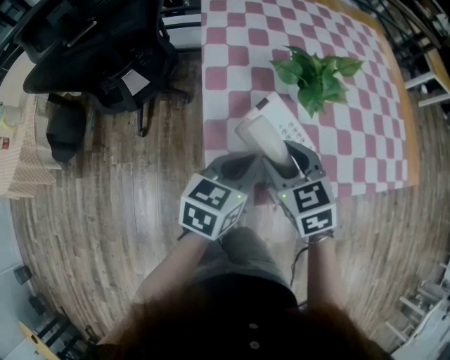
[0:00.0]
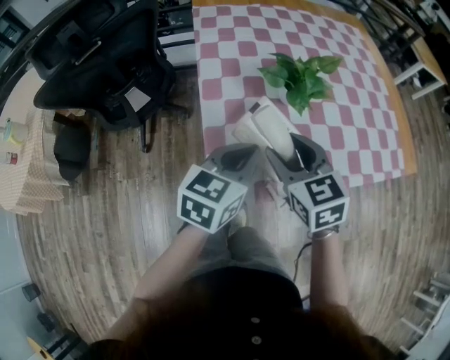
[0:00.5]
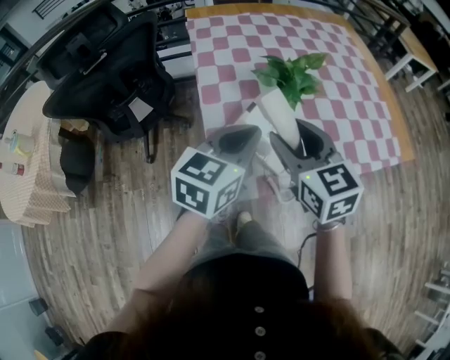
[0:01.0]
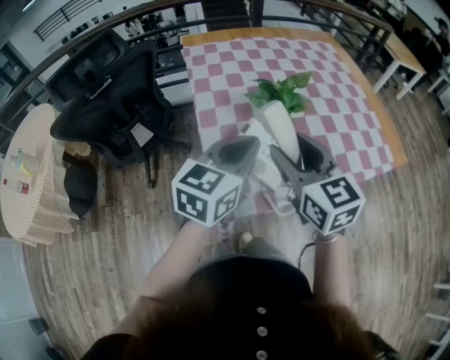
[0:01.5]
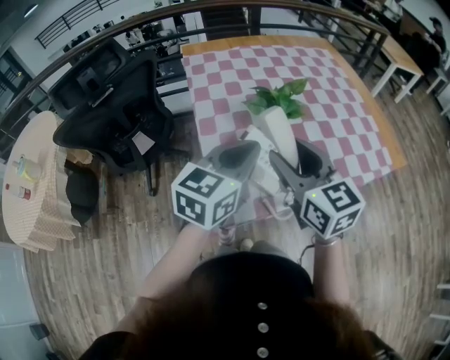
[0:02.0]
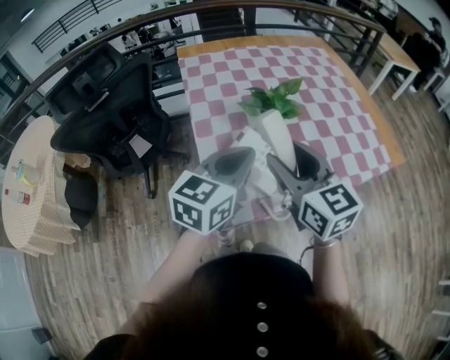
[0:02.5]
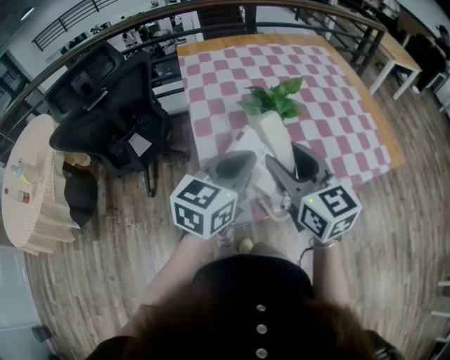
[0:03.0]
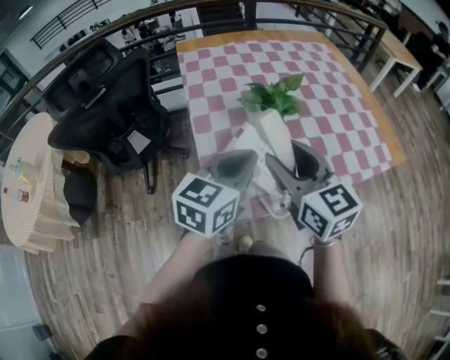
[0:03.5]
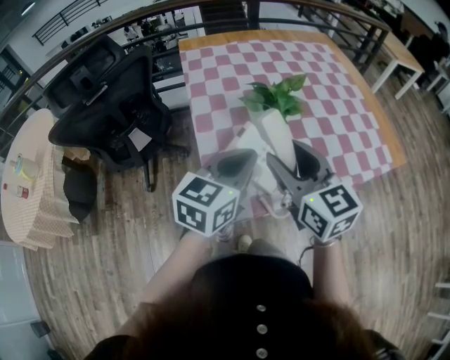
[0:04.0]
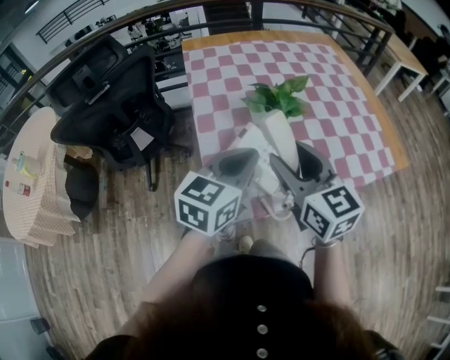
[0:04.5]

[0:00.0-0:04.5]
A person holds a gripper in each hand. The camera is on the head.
0.0 to 2.0 s: Both grippers move upward, approximately 15 cm. The left gripper swivels about 20 degrees, while the right gripper changes its angle by about 30 degrees.
2.0 to 4.5 s: The grippers move only a little.

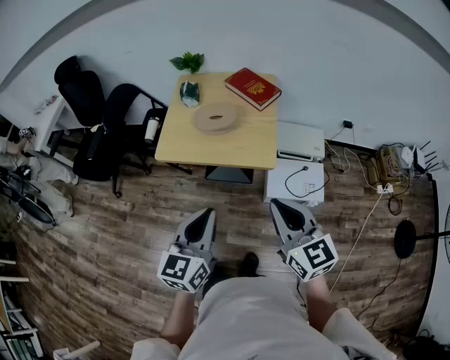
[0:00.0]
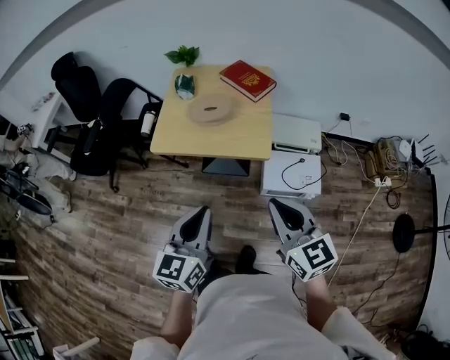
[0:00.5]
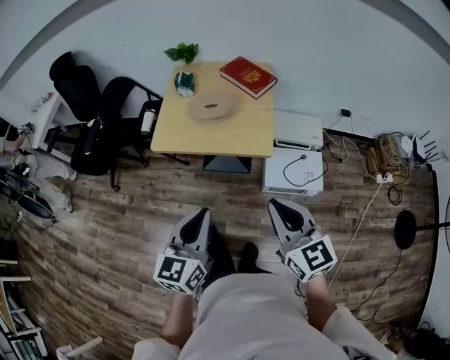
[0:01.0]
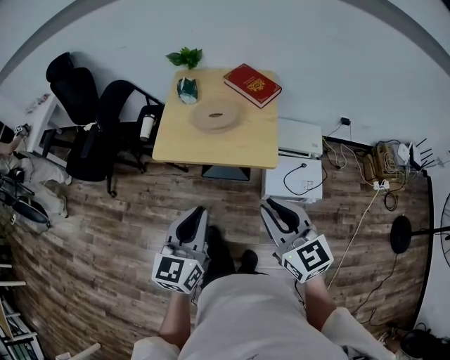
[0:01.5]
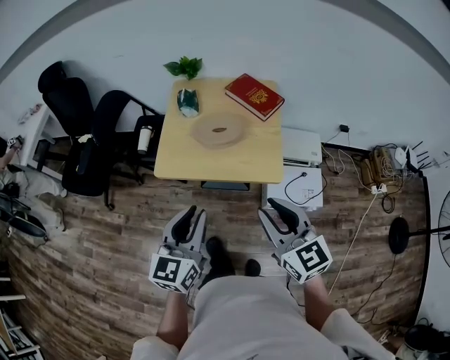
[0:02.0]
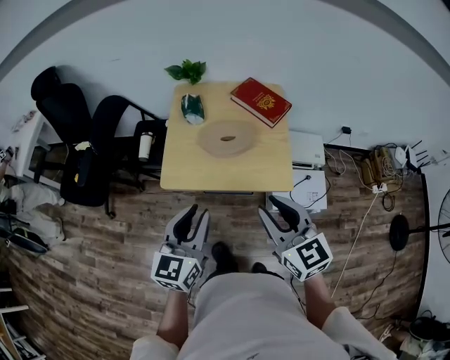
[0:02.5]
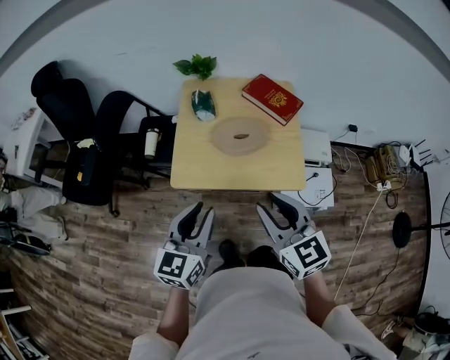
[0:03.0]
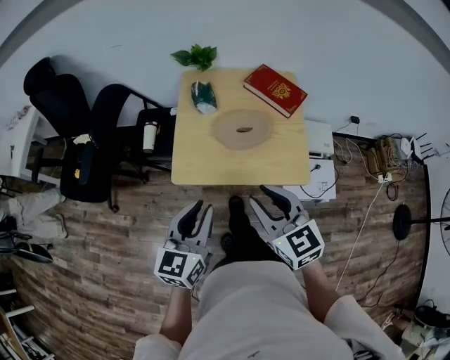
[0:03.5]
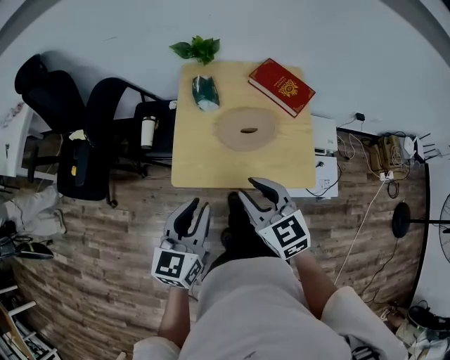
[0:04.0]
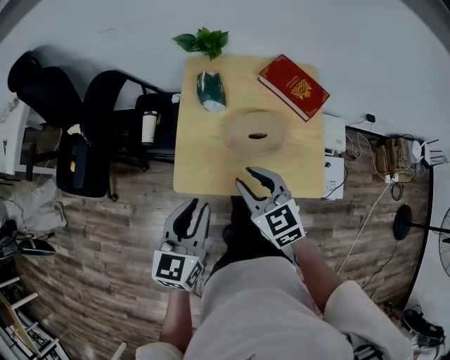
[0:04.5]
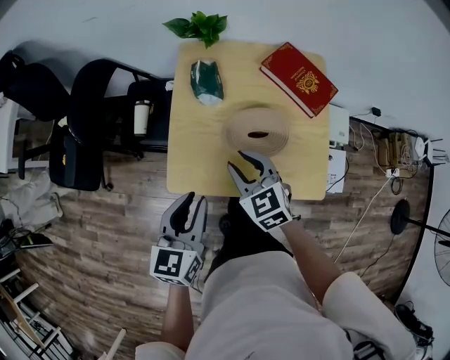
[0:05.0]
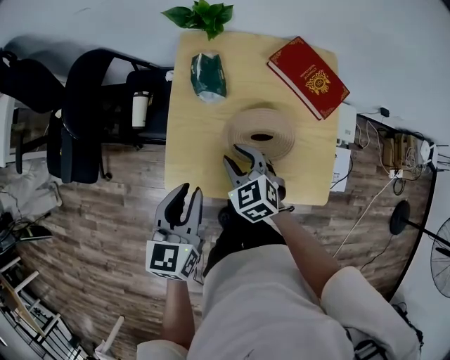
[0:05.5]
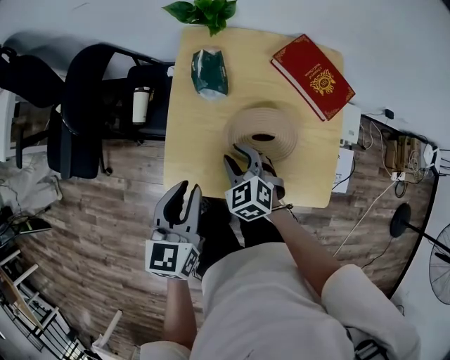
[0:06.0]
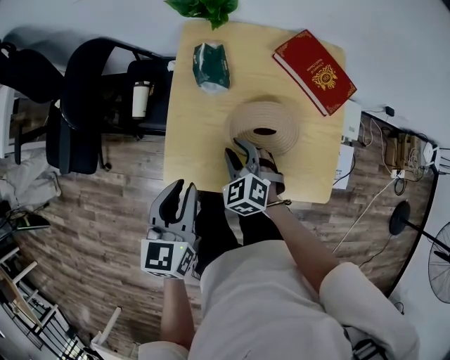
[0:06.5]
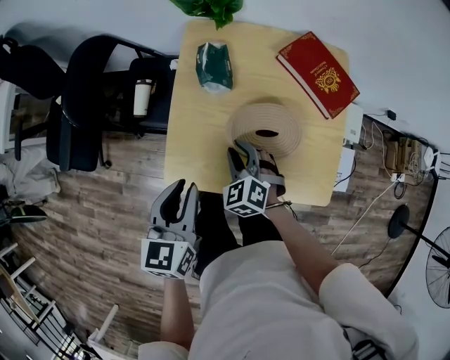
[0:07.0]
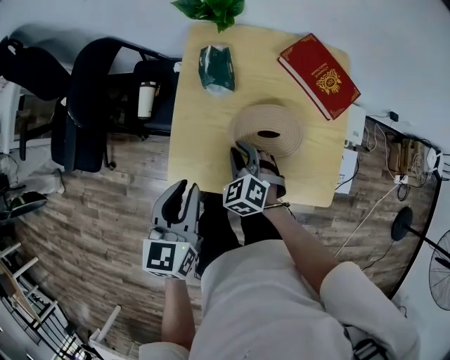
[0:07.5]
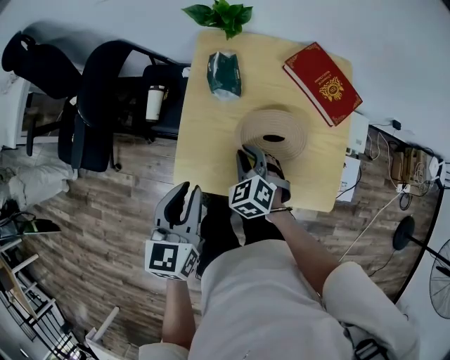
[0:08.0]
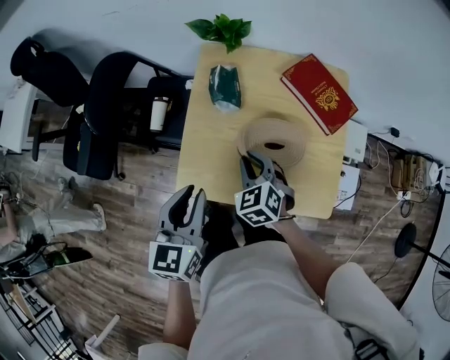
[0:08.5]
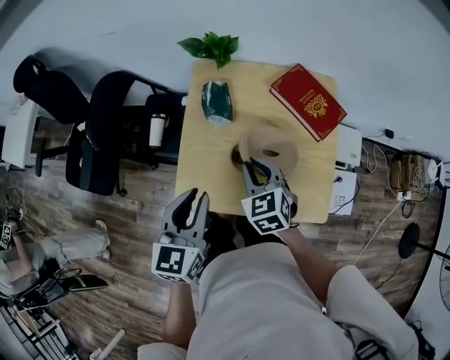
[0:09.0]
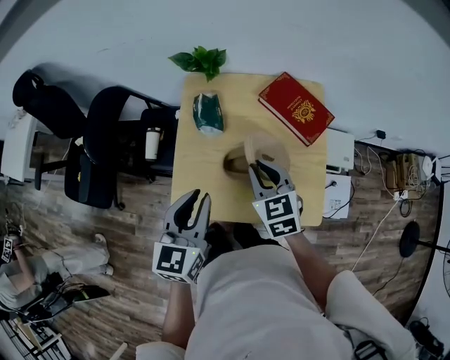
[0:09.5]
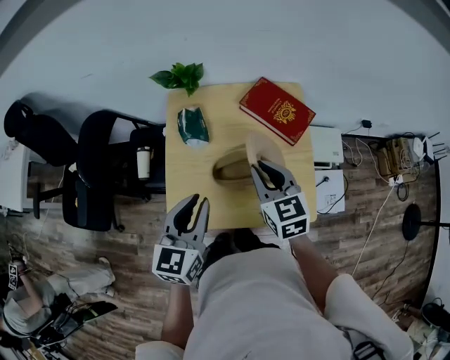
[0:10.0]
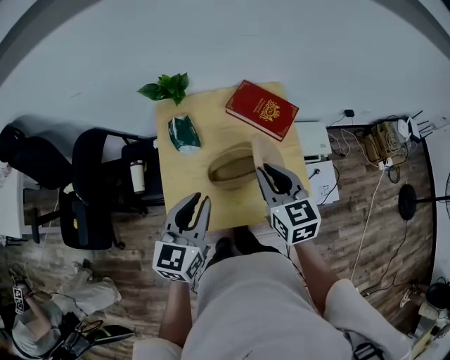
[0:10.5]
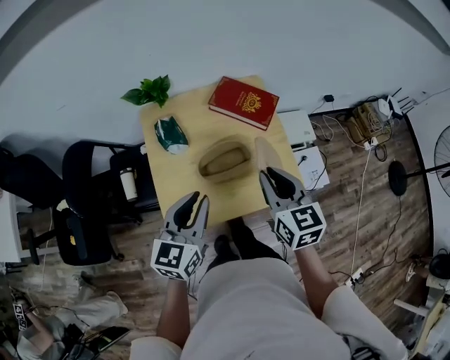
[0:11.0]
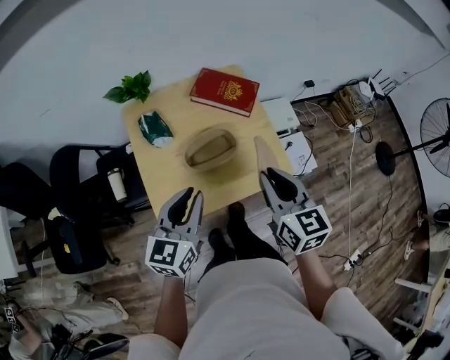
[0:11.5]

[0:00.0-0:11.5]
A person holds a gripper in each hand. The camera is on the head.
0.0 to 2.0 s: The two grippers go about 15 cm forward and to the left. The right gripper opens.
2.0 to 4.0 s: The right gripper is displaced forward, to the left and downward by some 25 cm; the left gripper heads forward and to the left, covering some 20 cm.
4.0 to 6.0 s: The right gripper travels downward and forward by about 30 cm, and rotates about 30 degrees. Meanwhile the left gripper shifts roughly 20 cm forward and downward.
6.0 to 7.5 s: The grippers move only a little.
7.5 to 9.5 s: The right gripper heads upward and to the right, covering approximately 20 cm, and rotates about 30 degrees. The left gripper travels upward and to the right by approximately 10 cm.
9.5 to 11.5 s: The right gripper moves about 20 cm, and changes its angle by roughly 40 degrees; the left gripper shifts by some 5 cm, and turns by roughly 30 degrees.

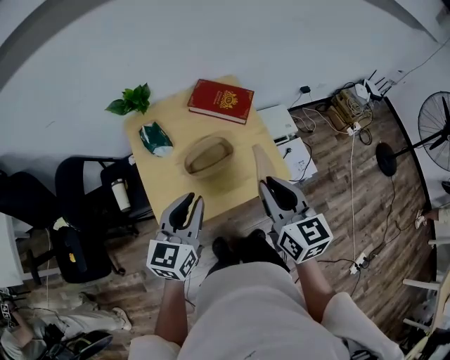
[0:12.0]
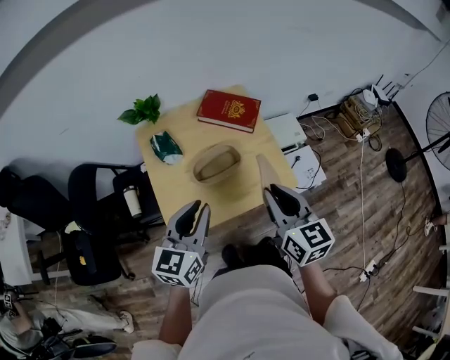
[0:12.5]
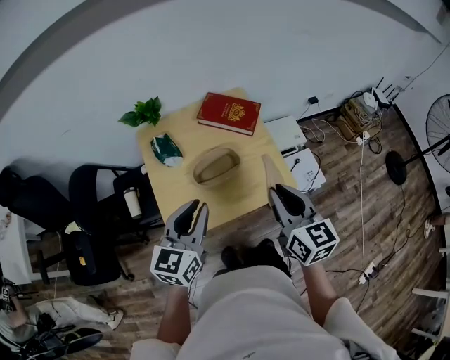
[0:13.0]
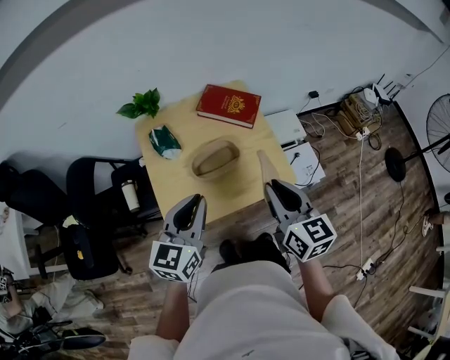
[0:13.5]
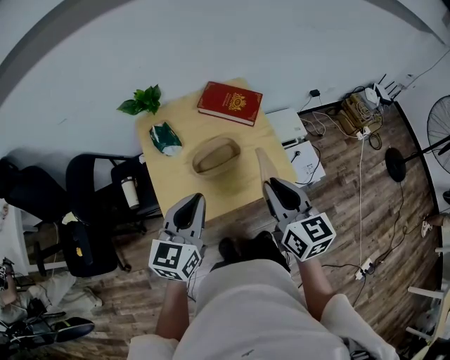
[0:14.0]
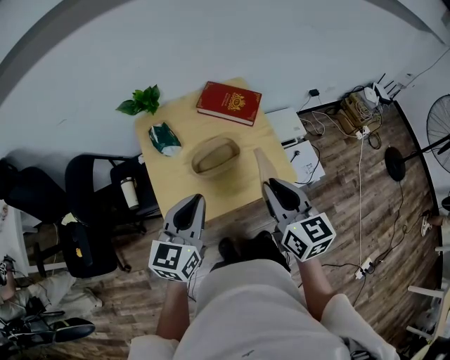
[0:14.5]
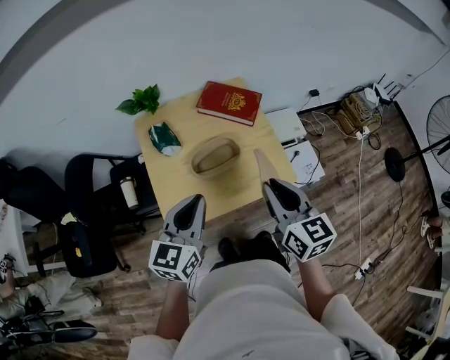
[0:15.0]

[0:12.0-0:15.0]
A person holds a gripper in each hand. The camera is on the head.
12.0 to 13.5 s: The grippers make only small movements.
13.5 to 15.0 s: Neither gripper changes place.

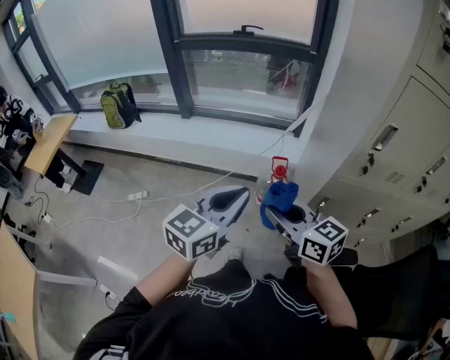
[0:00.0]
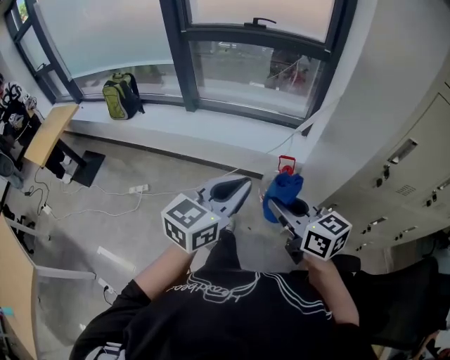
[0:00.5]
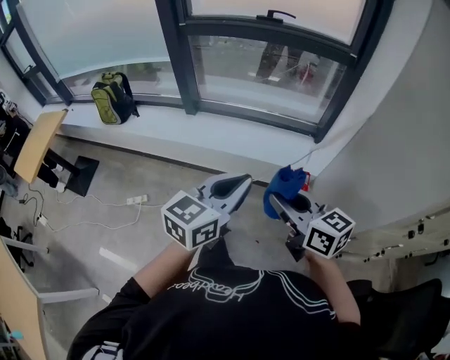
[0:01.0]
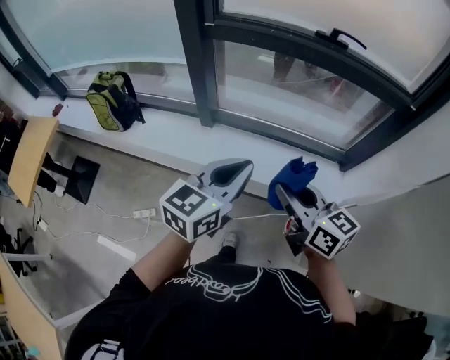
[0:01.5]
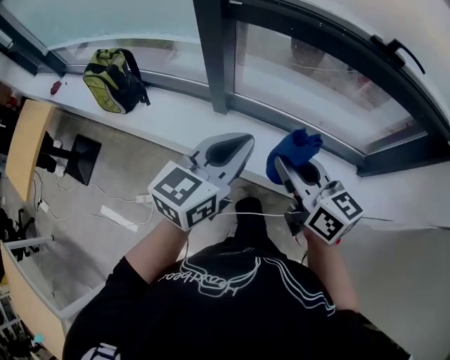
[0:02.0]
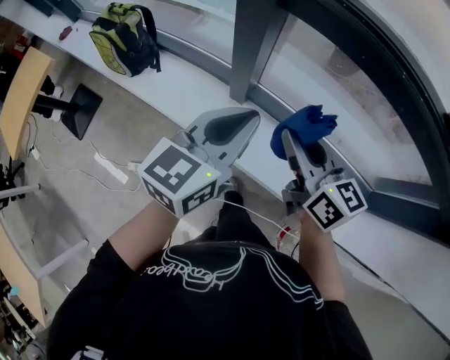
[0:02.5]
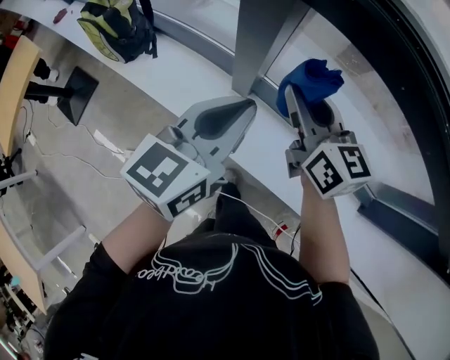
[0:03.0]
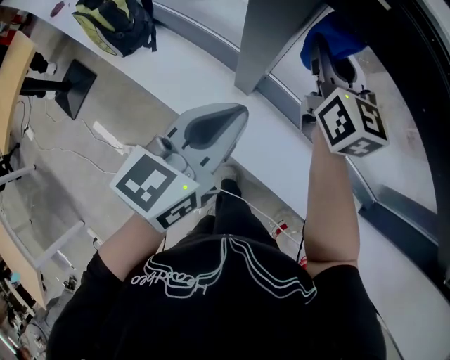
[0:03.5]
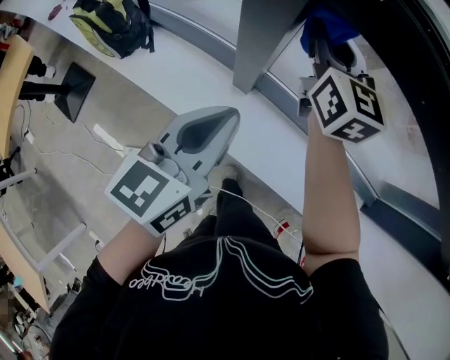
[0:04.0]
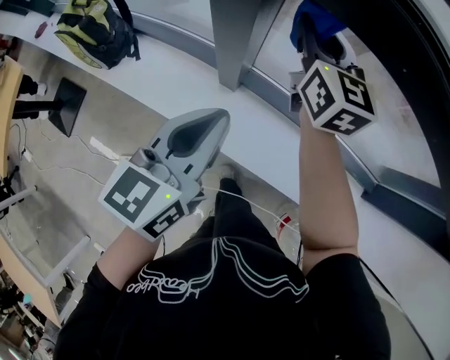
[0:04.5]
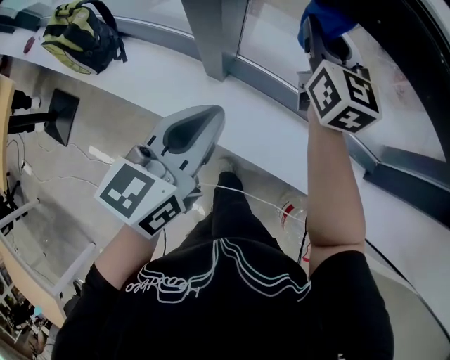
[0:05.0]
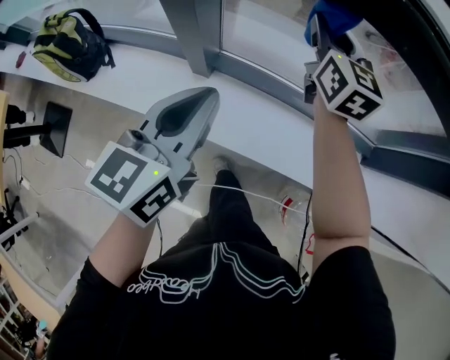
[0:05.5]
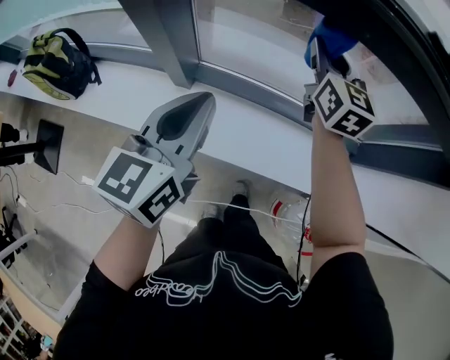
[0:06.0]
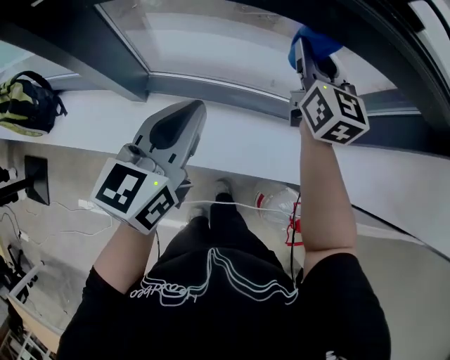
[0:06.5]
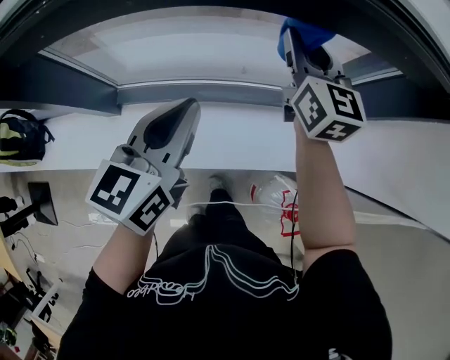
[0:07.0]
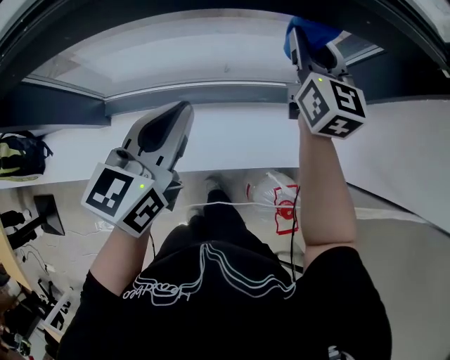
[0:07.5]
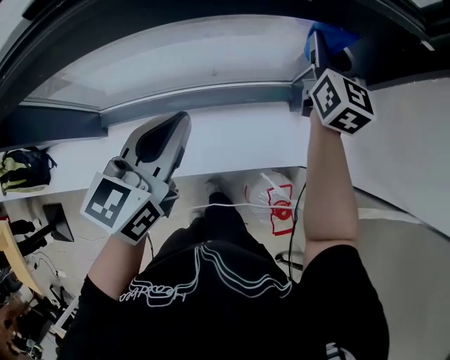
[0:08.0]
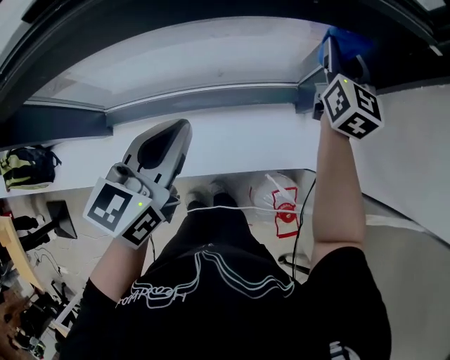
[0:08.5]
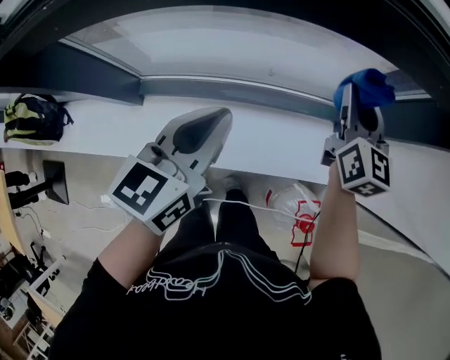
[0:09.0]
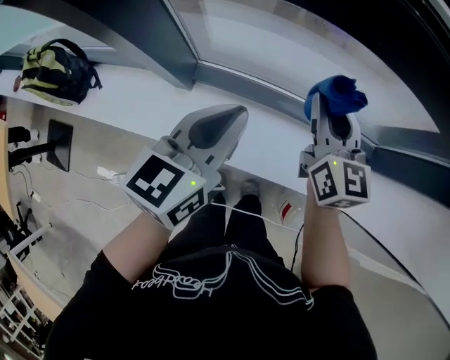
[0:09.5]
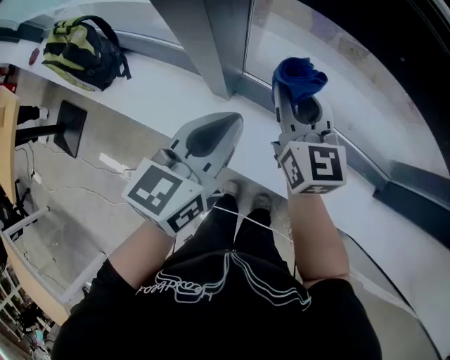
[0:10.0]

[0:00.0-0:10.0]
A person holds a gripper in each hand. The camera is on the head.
0.0 to 2.0 s: The pair of grippers is taken forward and to the left, roughly 70 cm.
2.0 to 4.0 s: The left gripper is displaced forward, downward and to the left by some 25 cm, and rotates some 20 degrees. The right gripper travels forward by about 40 cm, and turns by roughly 20 degrees.
4.0 to 6.0 s: The right gripper shifts about 25 cm to the right, and swivels some 20 degrees; the left gripper heads to the right, covering roughly 15 cm.
6.0 to 8.0 s: The right gripper changes place by about 50 cm, and rotates roughly 30 degrees. Meanwhile the left gripper changes place by roughly 40 cm, and rotates about 30 degrees.
8.0 to 10.0 s: The two grippers travel together, approximately 60 cm. The left gripper turns by roughly 30 degrees, while the right gripper changes its angle by approximately 40 degrees.
